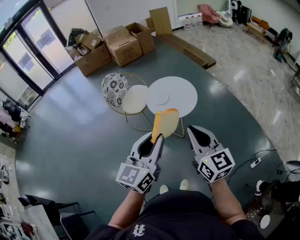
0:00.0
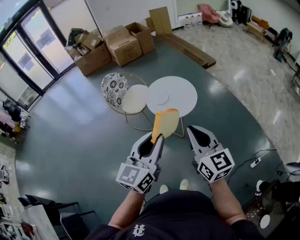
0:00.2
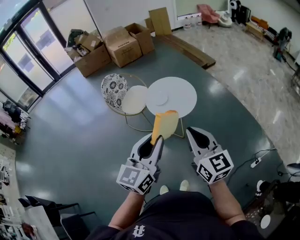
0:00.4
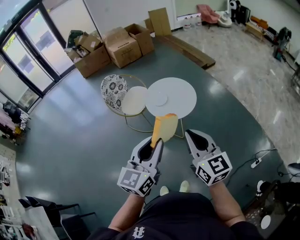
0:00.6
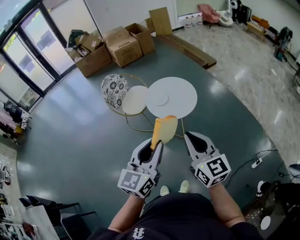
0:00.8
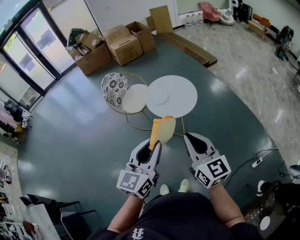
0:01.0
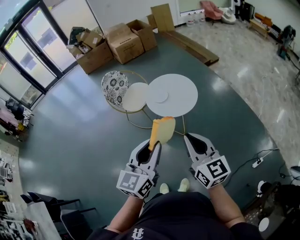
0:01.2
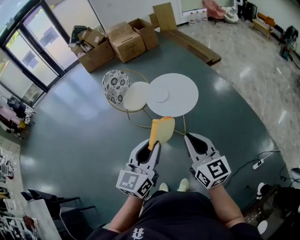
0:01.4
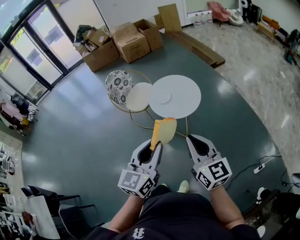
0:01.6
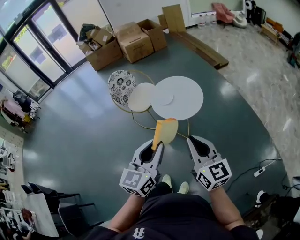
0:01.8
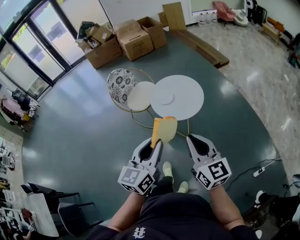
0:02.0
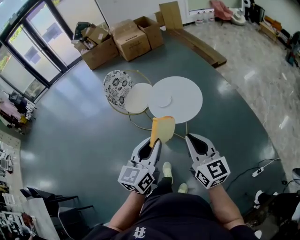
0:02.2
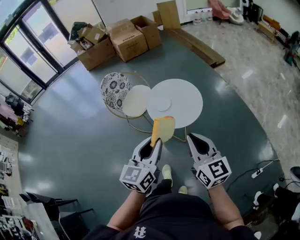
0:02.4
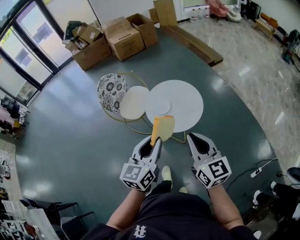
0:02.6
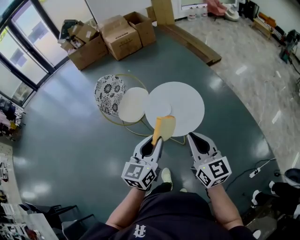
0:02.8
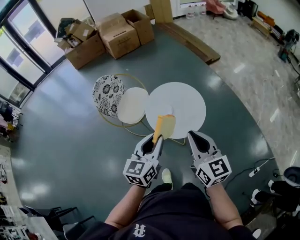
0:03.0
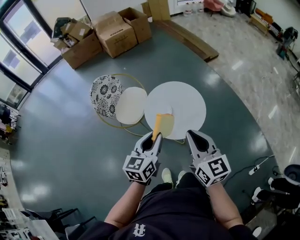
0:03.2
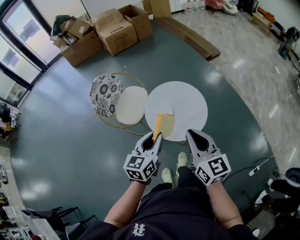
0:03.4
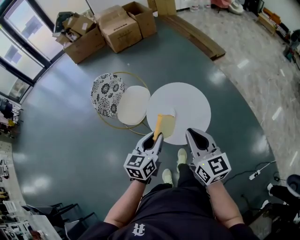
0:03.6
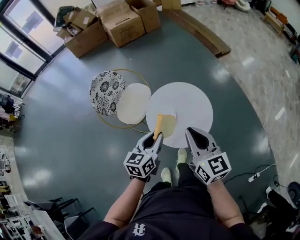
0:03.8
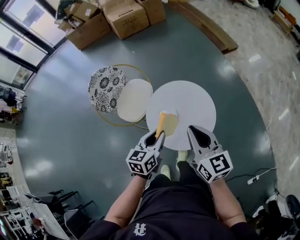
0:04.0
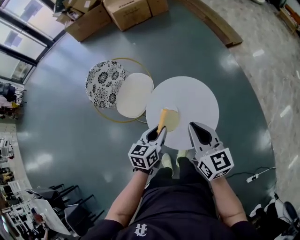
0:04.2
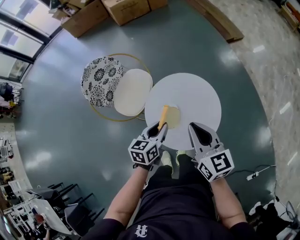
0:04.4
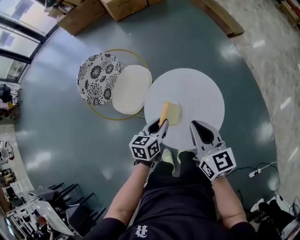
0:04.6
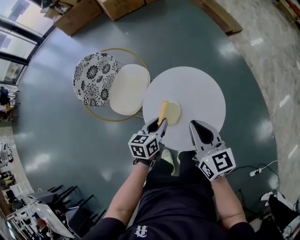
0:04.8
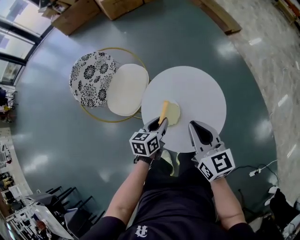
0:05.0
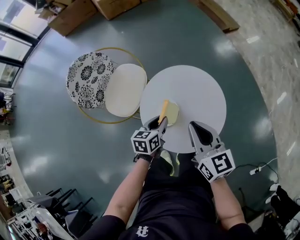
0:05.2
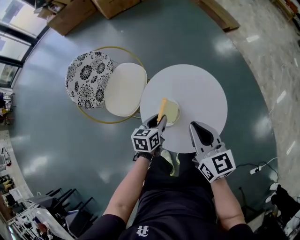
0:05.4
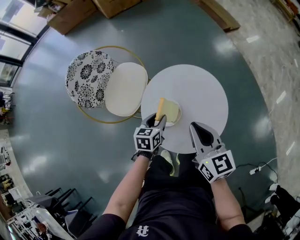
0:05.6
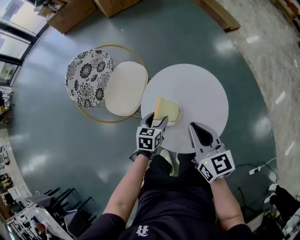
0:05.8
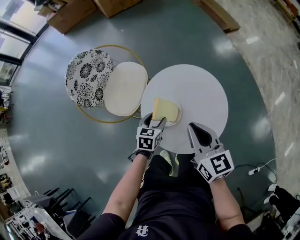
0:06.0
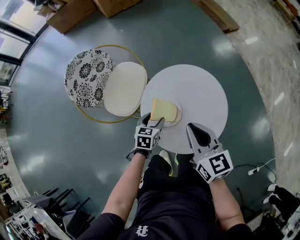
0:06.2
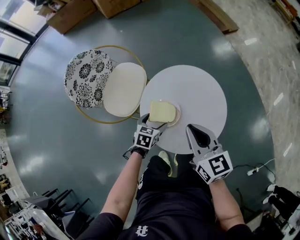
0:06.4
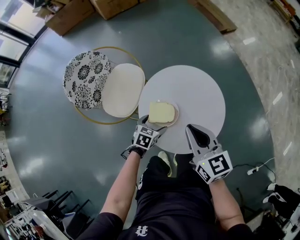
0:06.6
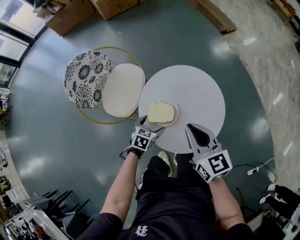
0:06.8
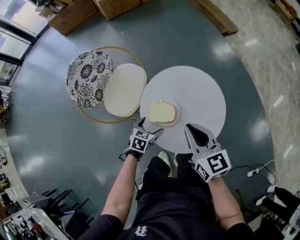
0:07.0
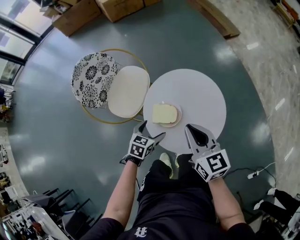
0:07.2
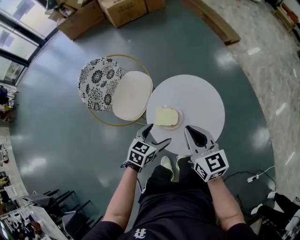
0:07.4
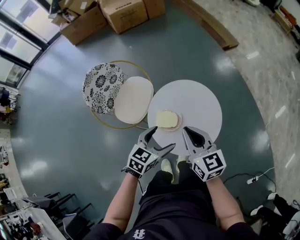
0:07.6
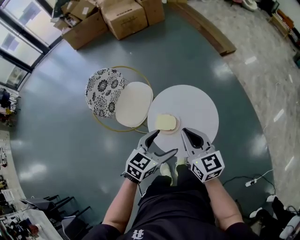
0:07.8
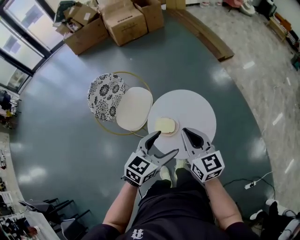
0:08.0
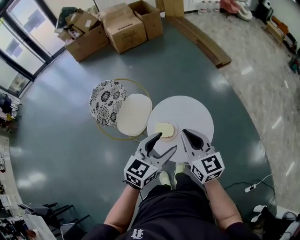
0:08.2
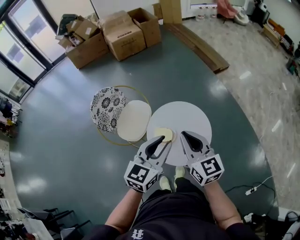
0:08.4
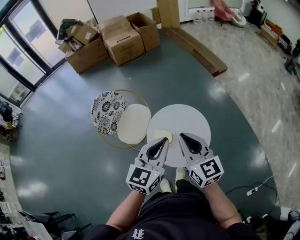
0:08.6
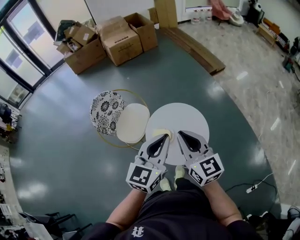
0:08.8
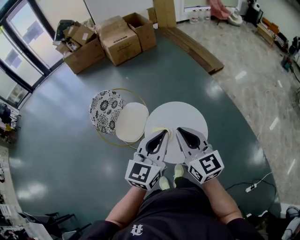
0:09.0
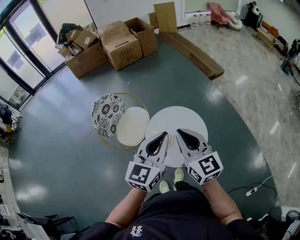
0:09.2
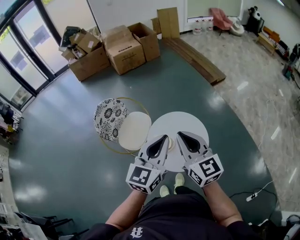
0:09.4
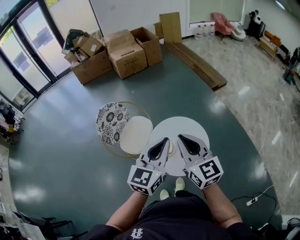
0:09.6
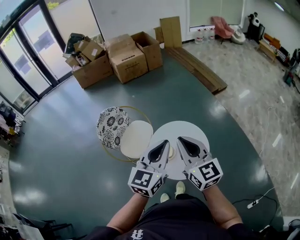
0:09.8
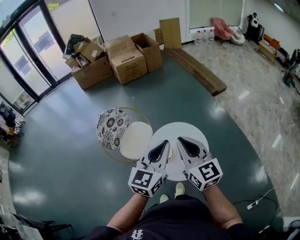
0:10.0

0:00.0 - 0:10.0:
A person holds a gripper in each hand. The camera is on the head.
0:00.0 - 0:01.4: The grippers move only a little.
0:01.4 - 0:02.8: The grippers both shift forward by some 25 cm.
0:02.8 - 0:04.2: The right gripper goes some 25 cm forward. Meanwhile the left gripper moves forward and downward, roughly 30 cm, and turns by some 20 degrees.
0:04.2 - 0:05.8: The left gripper goes approximately 20 cm downward. The right gripper shifts approximately 15 cm downward.
0:05.8 - 0:07.2: The left gripper goes approximately 5 cm backward, and opens up.
0:07.2 - 0:08.6: The left gripper moves upward, about 40 cm, points its fingers some 40 degrees further upward, and closes up. Meanwhile the right gripper moves upward, about 20 cm.
0:08.6 - 0:10.0: The two grippers go some 5 cm upward.

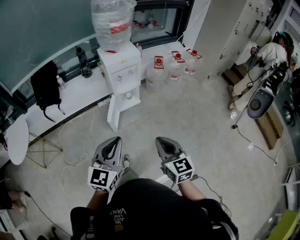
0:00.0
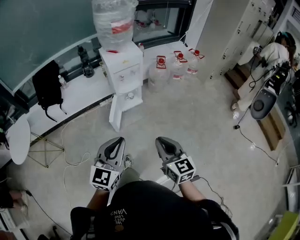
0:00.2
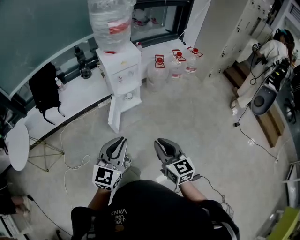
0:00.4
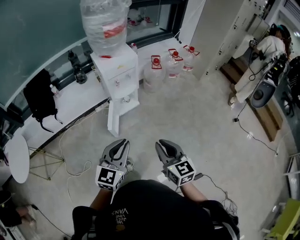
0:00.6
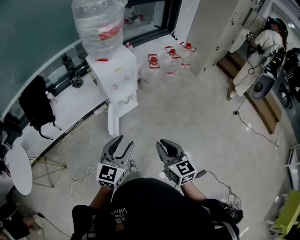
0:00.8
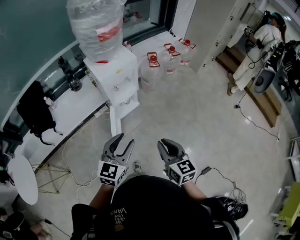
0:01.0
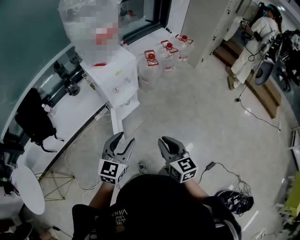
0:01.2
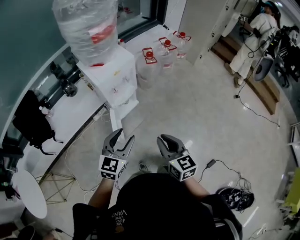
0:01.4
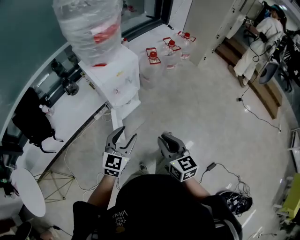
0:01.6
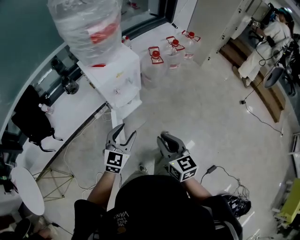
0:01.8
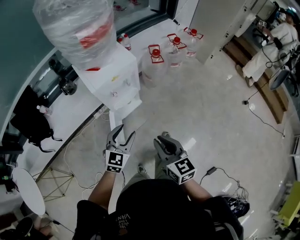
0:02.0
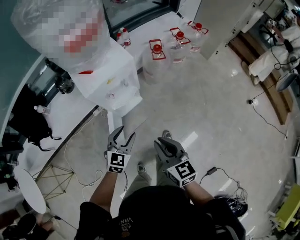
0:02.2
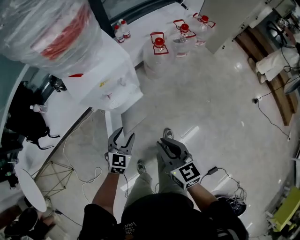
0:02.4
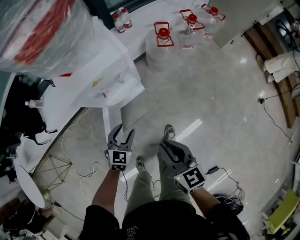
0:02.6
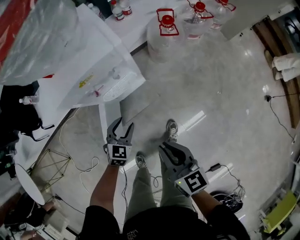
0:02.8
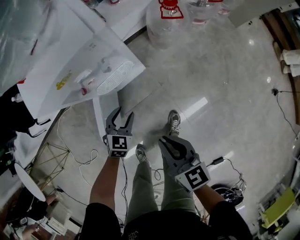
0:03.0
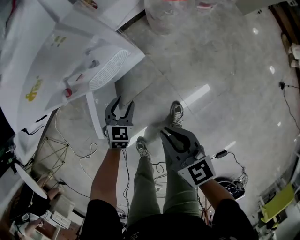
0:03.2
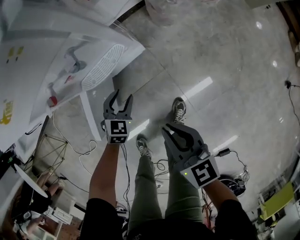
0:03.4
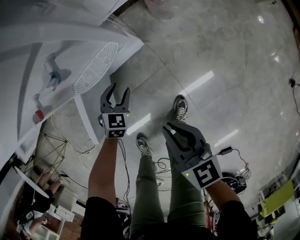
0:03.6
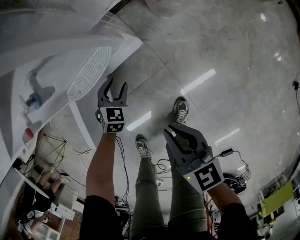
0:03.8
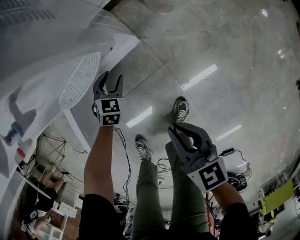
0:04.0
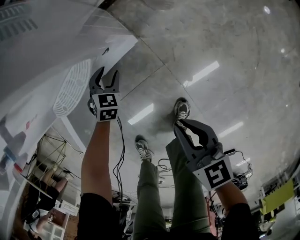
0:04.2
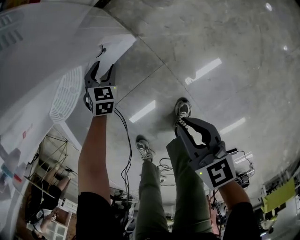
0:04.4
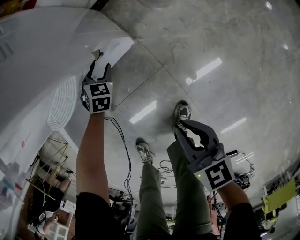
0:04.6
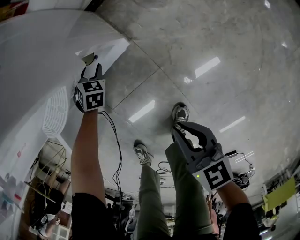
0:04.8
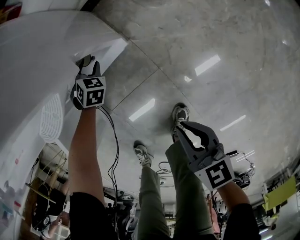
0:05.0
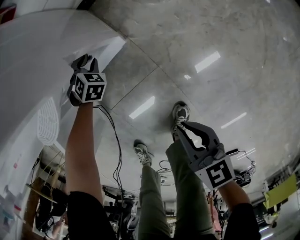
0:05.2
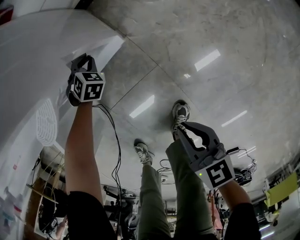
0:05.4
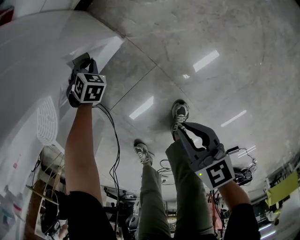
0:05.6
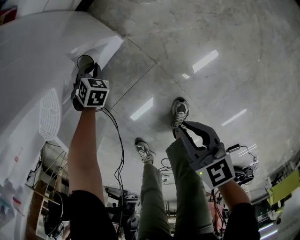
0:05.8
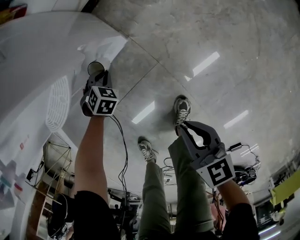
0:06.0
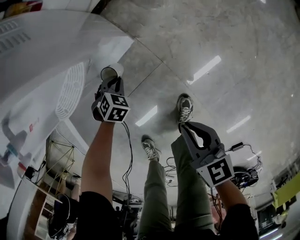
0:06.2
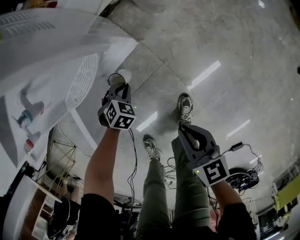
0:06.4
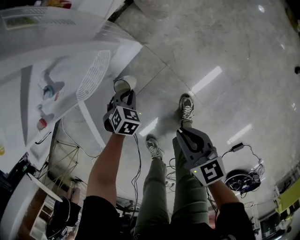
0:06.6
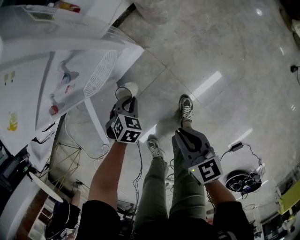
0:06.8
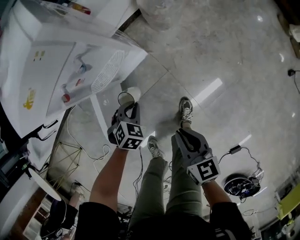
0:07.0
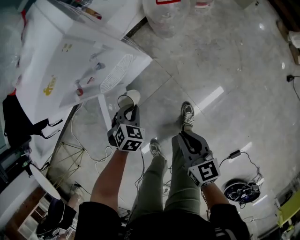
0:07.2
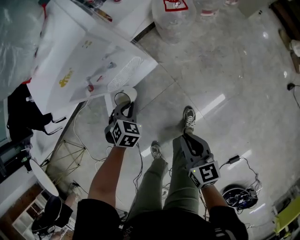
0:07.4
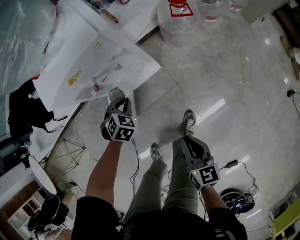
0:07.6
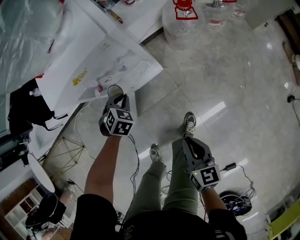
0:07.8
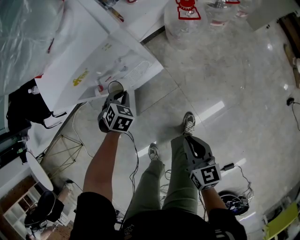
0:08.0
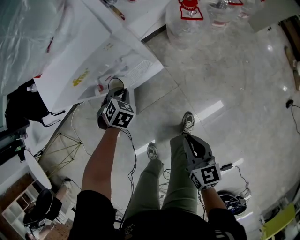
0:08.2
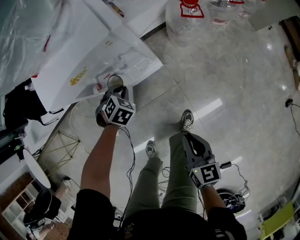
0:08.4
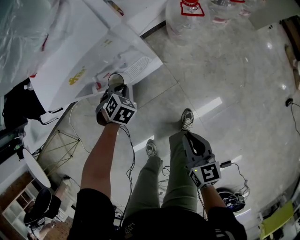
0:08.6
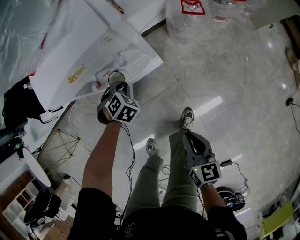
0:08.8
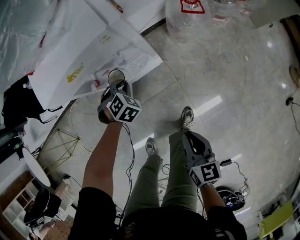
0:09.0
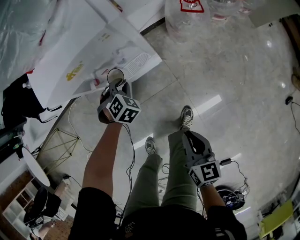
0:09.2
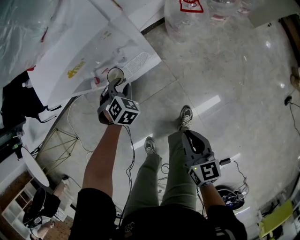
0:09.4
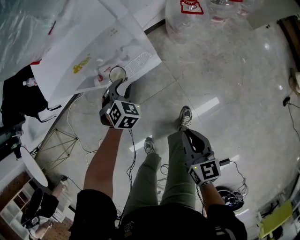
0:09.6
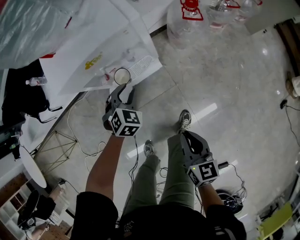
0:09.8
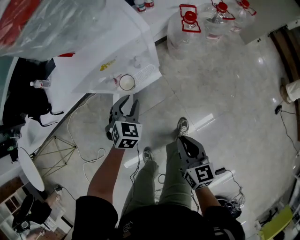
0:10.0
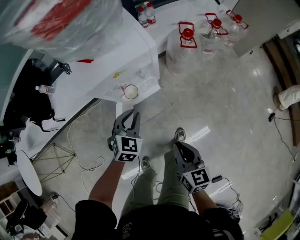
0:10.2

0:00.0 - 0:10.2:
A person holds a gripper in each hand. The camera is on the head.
0:00.0 - 0:01.4: The left gripper moves forward and downward, approximately 30 cm, rotates approximately 20 degrees, and opens; the right gripper goes approximately 25 cm forward and to the left.
0:01.4 - 0:03.0: Both grippers move downward and forward, roughly 50 cm. The left gripper rotates approximately 30 degrees.
0:03.0 - 0:04.4: The right gripper shifts some 30 cm downward. Meanwhile the left gripper heads downward and forward, covering roughly 40 cm, and turns by some 20 degrees.
0:04.4 - 0:05.8: Both grippers move downward, about 5 cm. The left gripper turns by about 20 degrees, and closes its fingers.
0:05.8 - 0:07.2: The grippers both shift upward by approximately 35 cm.
0:07.2 - 0:08.8: The left gripper is displaced forward by roughly 15 cm.
0:08.8 - 0:10.2: The left gripper is displaced upward and backward by about 20 cm, and changes its angle by some 40 degrees, while the right gripper moves upward and to the left, roughly 15 cm.

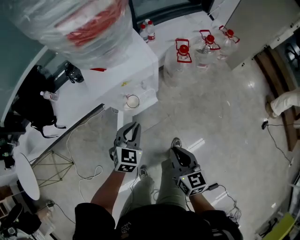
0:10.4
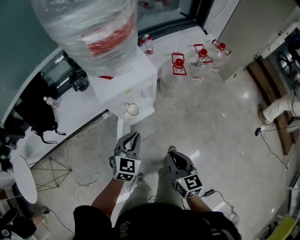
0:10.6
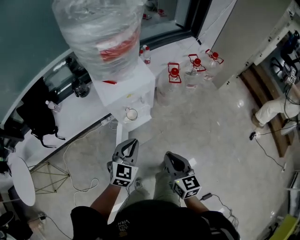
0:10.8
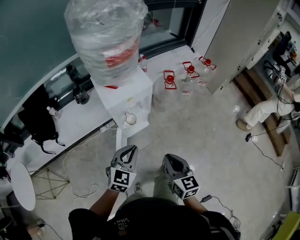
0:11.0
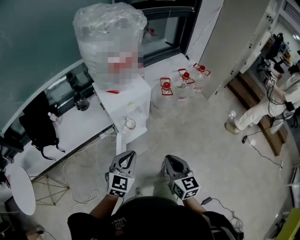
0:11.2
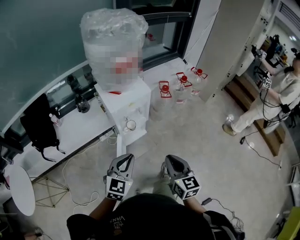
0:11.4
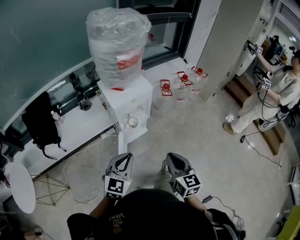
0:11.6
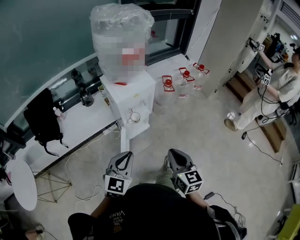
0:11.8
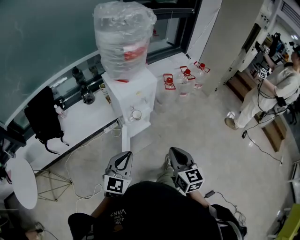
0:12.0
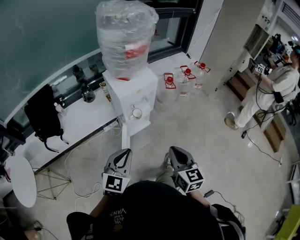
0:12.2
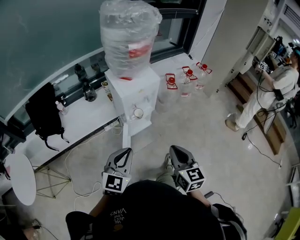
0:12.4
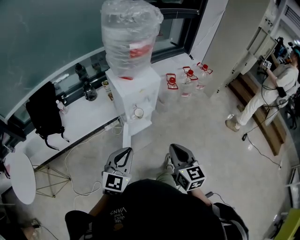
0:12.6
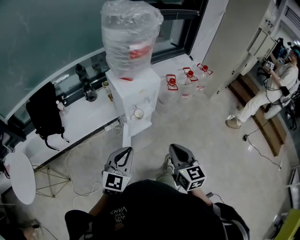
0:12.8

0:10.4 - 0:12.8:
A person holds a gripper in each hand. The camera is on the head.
0:10.4 - 0:11.6: The right gripper travels upward and backward by roughly 25 cm; the left gripper travels backward and upward by approximately 35 cm, and turns by about 20 degrees.
0:11.6 - 0:12.8: The left gripper moves some 5 cm.

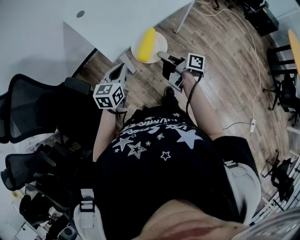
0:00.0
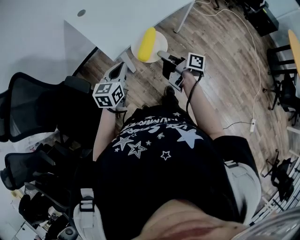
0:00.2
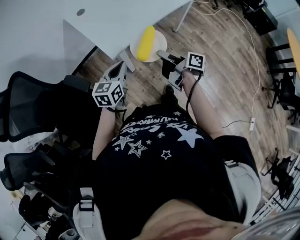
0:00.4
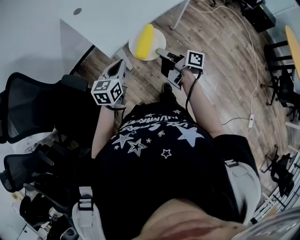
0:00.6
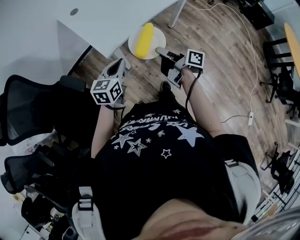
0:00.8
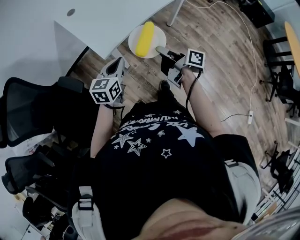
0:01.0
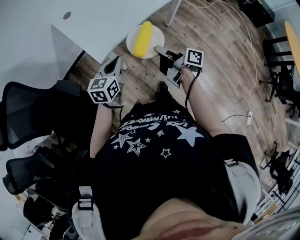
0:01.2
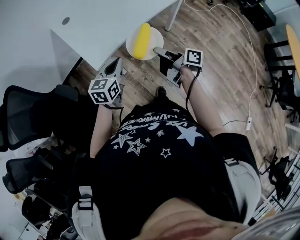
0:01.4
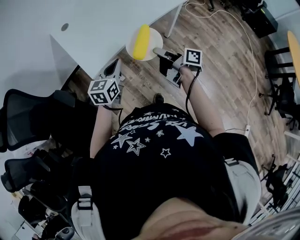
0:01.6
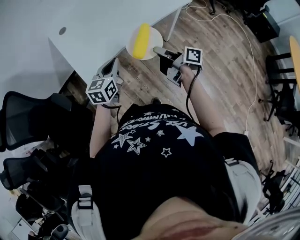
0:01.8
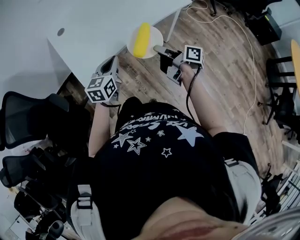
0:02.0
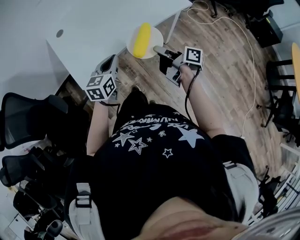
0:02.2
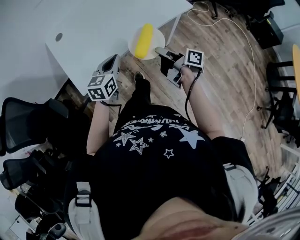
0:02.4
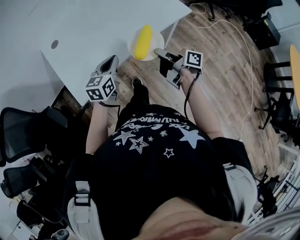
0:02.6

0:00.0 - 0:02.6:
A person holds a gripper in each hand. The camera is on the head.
0:00.0 - 0:01.2: Both grippers travel together to the right, roughly 5 cm.
0:01.2 - 0:02.6: The right gripper travels to the right and forward by about 25 cm, while the left gripper shifts some 25 cm forward and to the right.
